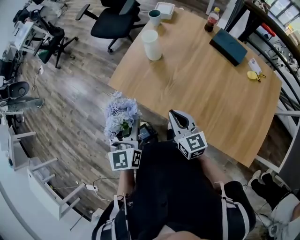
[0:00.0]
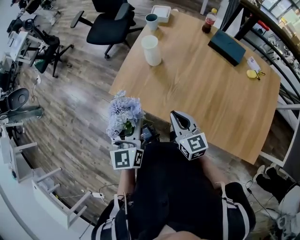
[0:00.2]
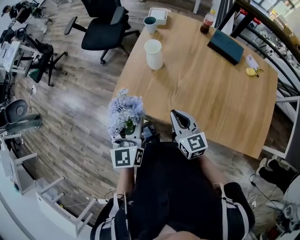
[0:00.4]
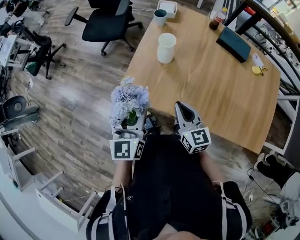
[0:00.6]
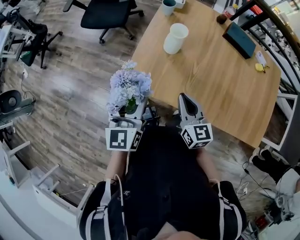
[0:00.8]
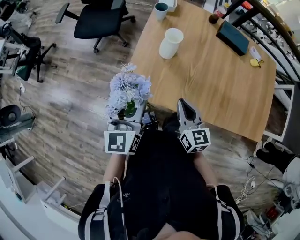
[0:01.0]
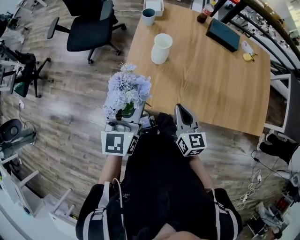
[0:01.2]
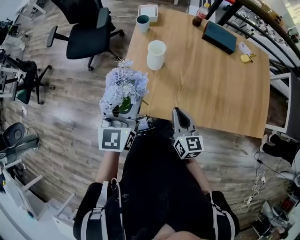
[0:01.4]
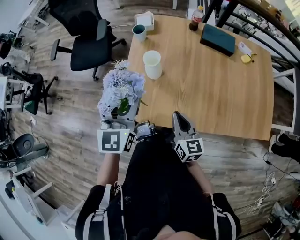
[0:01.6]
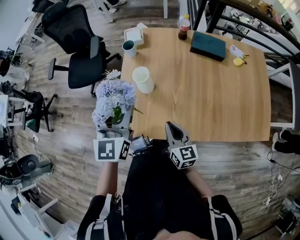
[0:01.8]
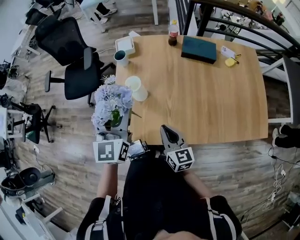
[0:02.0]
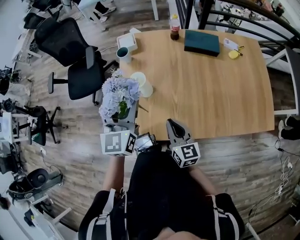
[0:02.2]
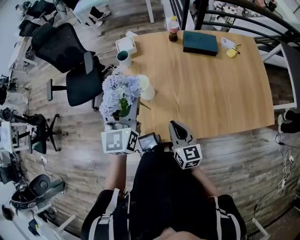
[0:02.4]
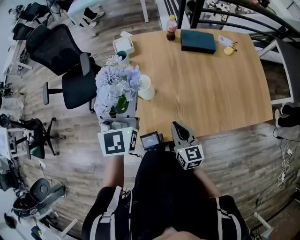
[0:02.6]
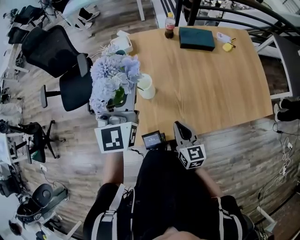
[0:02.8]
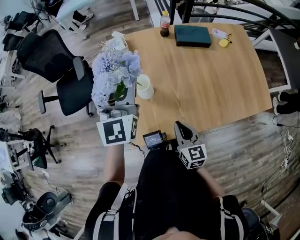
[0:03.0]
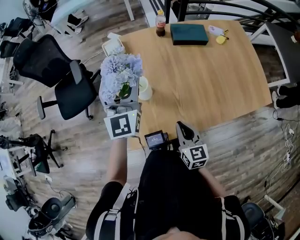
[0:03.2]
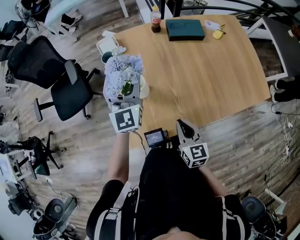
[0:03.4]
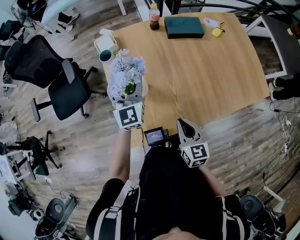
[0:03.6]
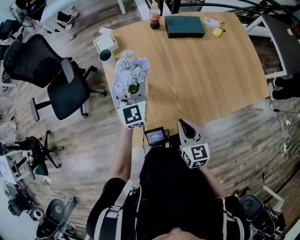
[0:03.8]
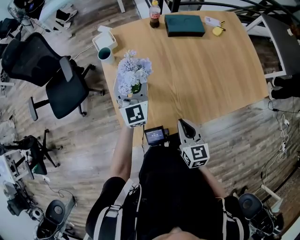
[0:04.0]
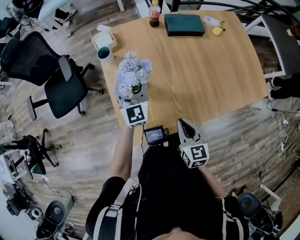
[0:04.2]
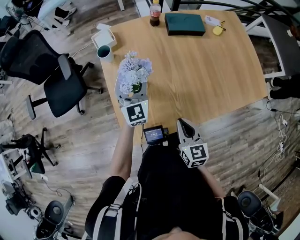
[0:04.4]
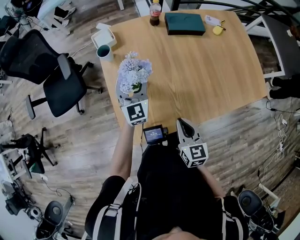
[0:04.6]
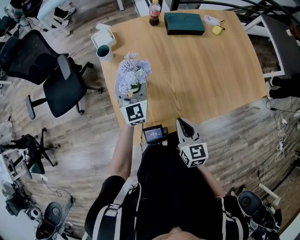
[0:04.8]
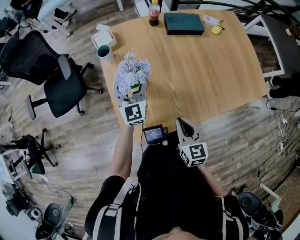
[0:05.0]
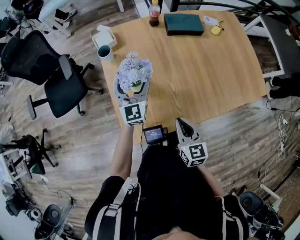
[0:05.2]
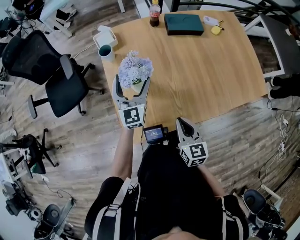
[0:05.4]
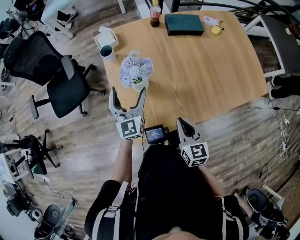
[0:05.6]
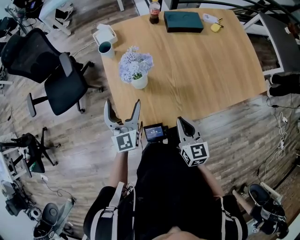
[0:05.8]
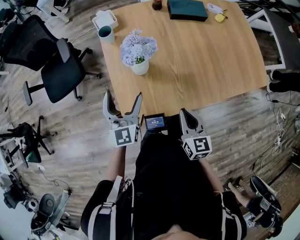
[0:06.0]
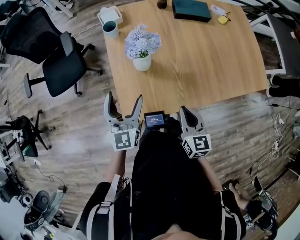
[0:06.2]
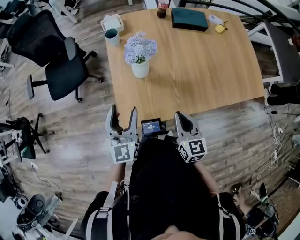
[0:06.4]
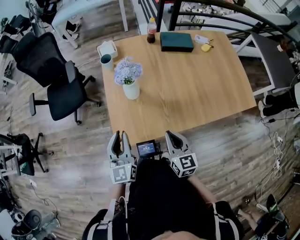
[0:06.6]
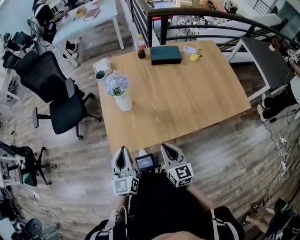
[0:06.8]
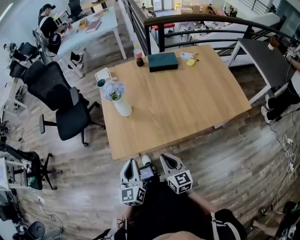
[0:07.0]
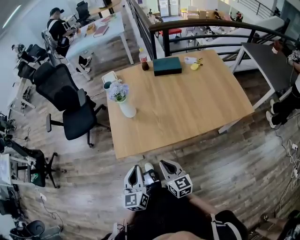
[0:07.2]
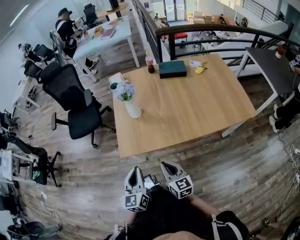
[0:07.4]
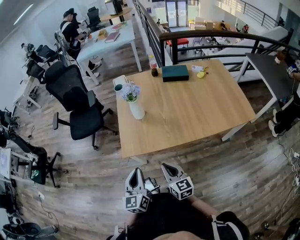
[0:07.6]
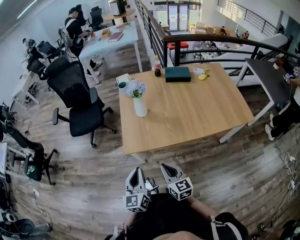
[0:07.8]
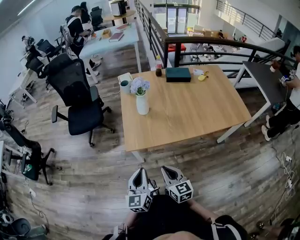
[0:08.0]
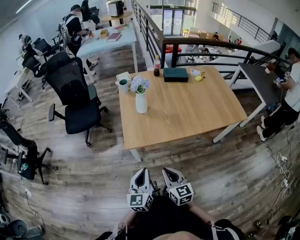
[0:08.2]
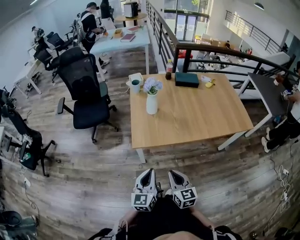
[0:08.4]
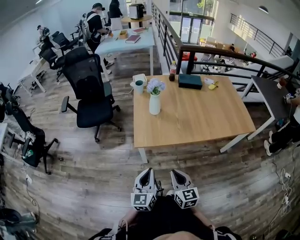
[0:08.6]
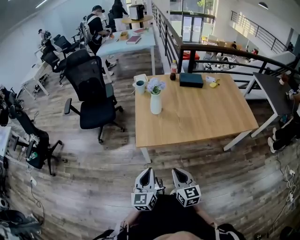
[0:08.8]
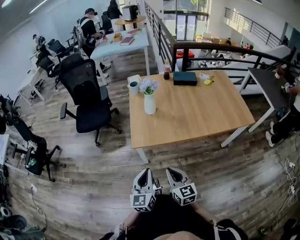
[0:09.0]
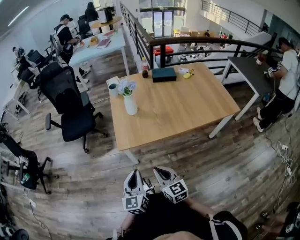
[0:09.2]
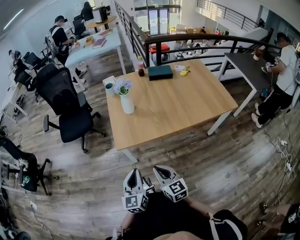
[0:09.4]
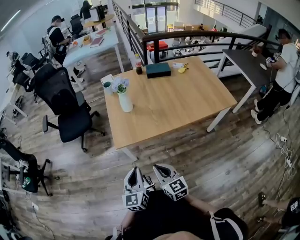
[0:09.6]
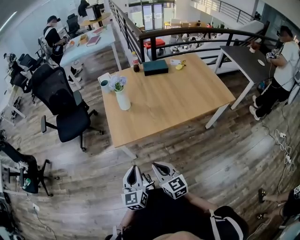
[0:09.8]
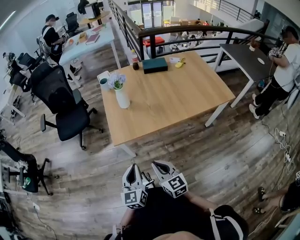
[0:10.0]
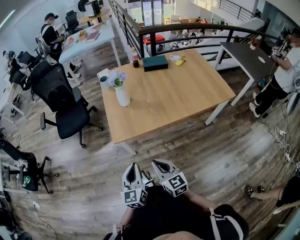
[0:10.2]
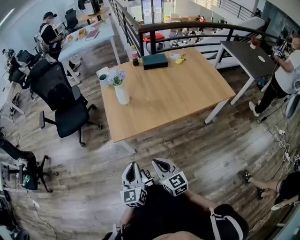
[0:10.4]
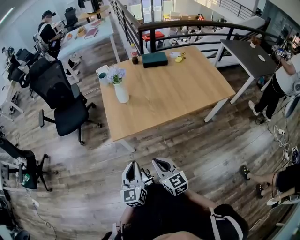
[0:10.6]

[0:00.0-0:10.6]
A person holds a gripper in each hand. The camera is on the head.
0.0 to 1.6 s: The left gripper changes place by about 25 cm, and rotates some 40 degrees, while the right gripper shifts by about 15 cm, and changes its angle by about 40 degrees.
1.6 to 3.0 s: The left gripper shifts roughly 15 cm forward and upward.
3.0 to 4.6 s: The left gripper shifts roughly 20 cm downward.
4.6 to 6.0 s: The left gripper shifts some 15 cm backward and to the left.
6.0 to 7.6 s: The right gripper heads backward, covering about 20 cm, and rotates some 20 degrees; the left gripper travels backward by about 35 cm, and closes.
7.6 to 9.0 s: The left gripper is displaced backward by approximately 10 cm; the right gripper is displaced backward and to the left by some 10 cm.
9.0 to 10.6 s: The grippers make only small movements.

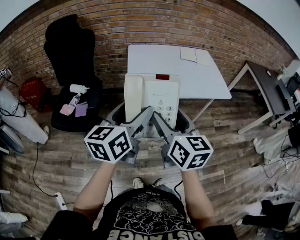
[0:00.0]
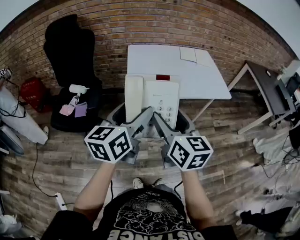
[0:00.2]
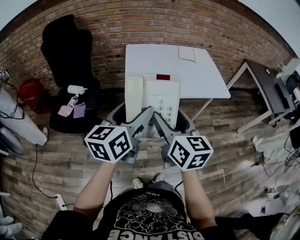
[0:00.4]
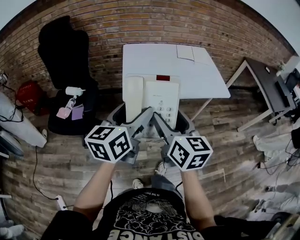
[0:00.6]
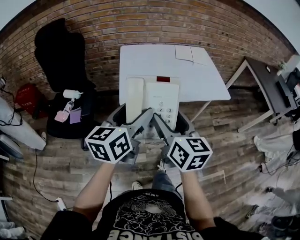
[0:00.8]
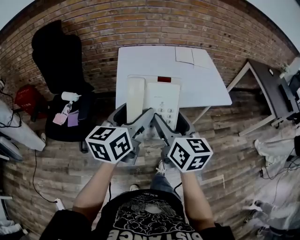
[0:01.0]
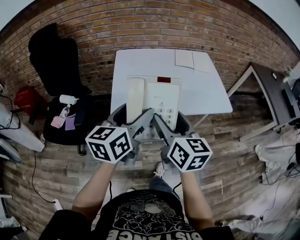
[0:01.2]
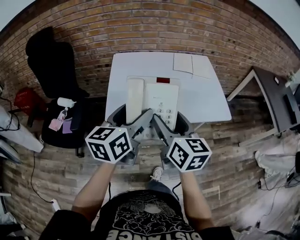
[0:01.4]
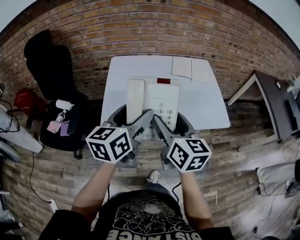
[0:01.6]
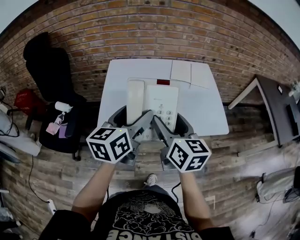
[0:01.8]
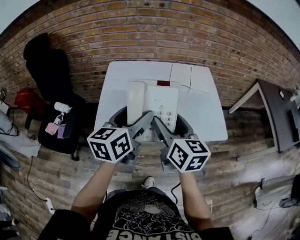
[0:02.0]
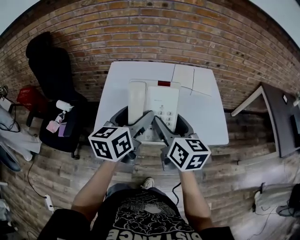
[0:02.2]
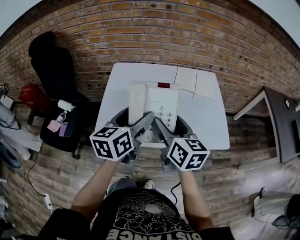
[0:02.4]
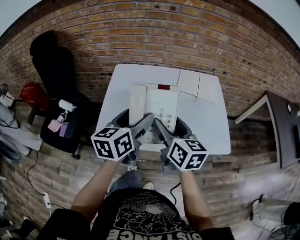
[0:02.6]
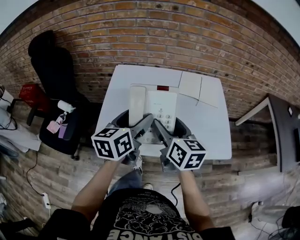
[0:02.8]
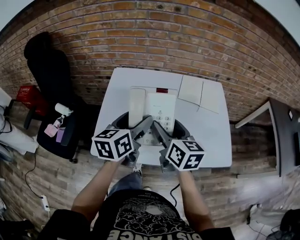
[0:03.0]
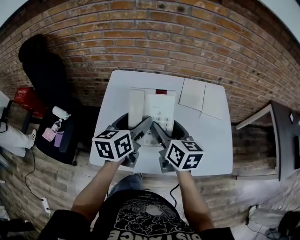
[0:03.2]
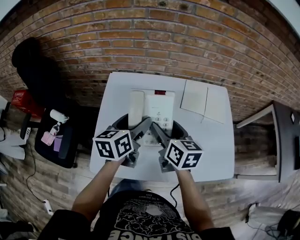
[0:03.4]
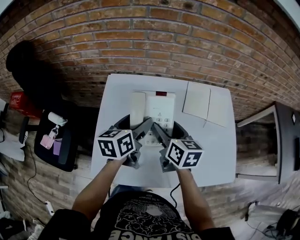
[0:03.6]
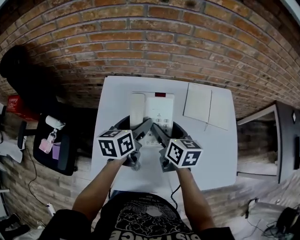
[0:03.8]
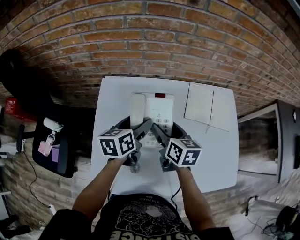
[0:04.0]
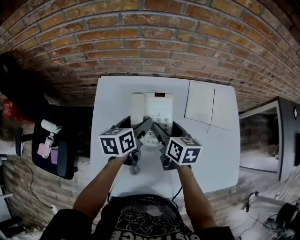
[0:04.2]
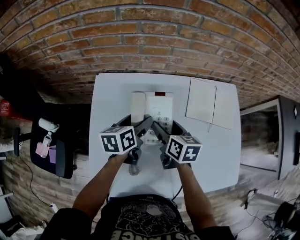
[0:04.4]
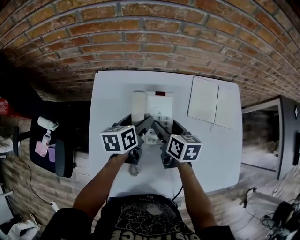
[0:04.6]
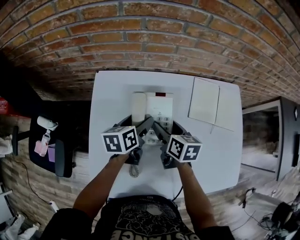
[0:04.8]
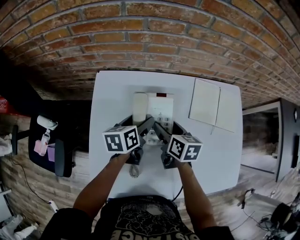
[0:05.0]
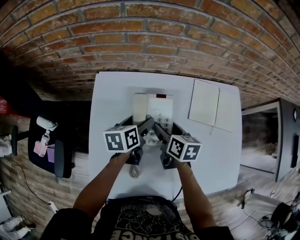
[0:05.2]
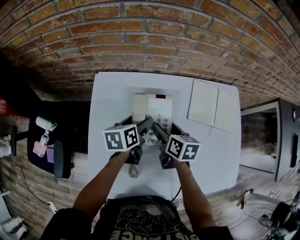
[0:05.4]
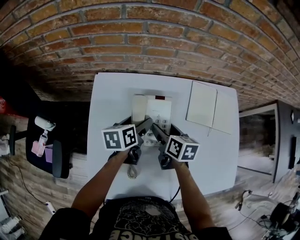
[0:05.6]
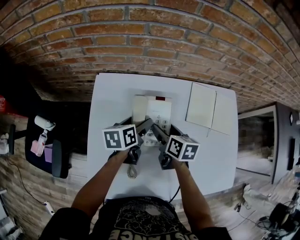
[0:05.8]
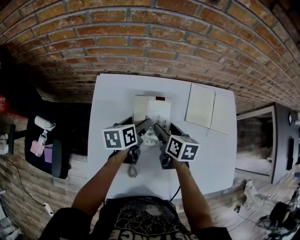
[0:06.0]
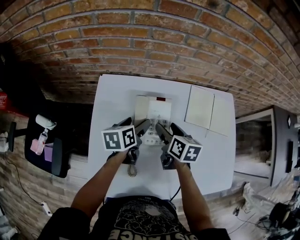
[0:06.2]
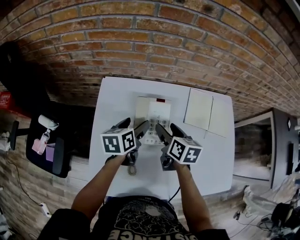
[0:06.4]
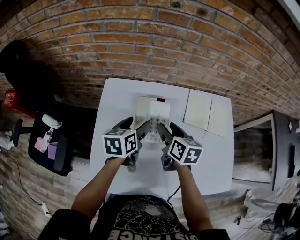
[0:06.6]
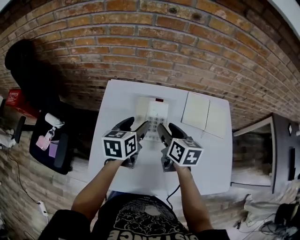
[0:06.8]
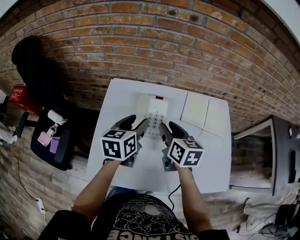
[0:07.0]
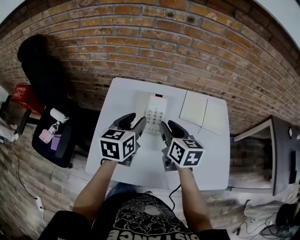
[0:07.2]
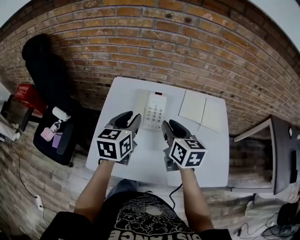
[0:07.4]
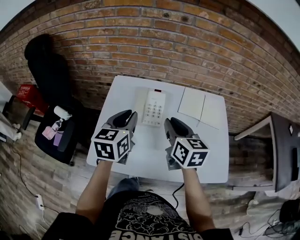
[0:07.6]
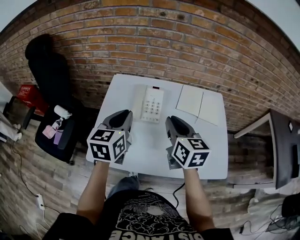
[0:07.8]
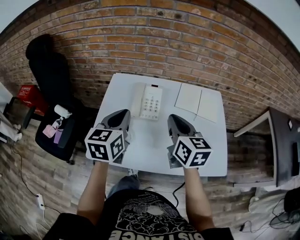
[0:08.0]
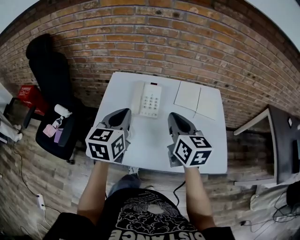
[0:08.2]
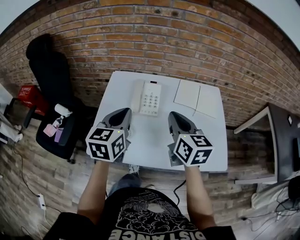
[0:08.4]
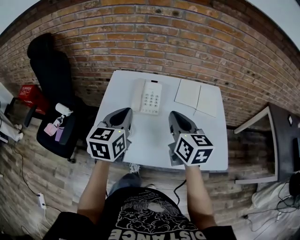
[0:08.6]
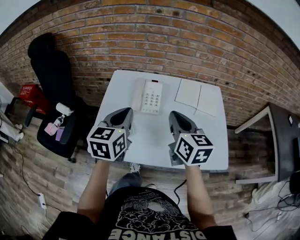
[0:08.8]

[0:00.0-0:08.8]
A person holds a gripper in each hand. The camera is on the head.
0.0 to 1.4 s: The grippers both shift forward and to the right by some 25 cm.
1.4 to 3.0 s: The two grippers go roughly 20 cm forward.
3.0 to 4.4 s: The grippers both shift forward and downward by about 30 cm. The right gripper changes its angle by roughly 20 degrees, while the left gripper rotates roughly 20 degrees.
4.4 to 5.8 s: The grippers stay close to where they were, moving slightly.
5.8 to 7.4 s: The grippers both shift upward and backward by approximately 25 cm. The left gripper swivels some 30 degrees, and closes up. Meanwhile the right gripper turns by about 30 degrees, and closes.
7.4 to 8.8 s: The right gripper shifts about 10 cm backward and upward. Meanwhile the left gripper heads backward, covering about 10 cm.

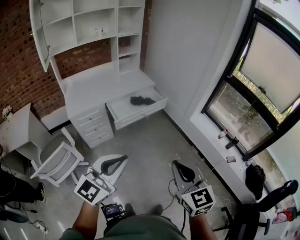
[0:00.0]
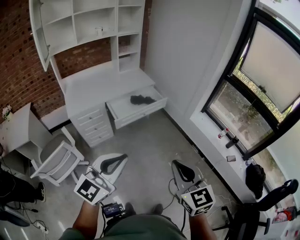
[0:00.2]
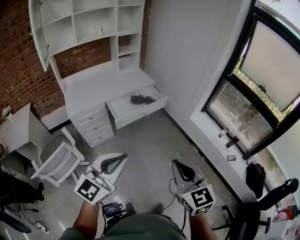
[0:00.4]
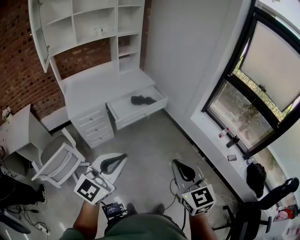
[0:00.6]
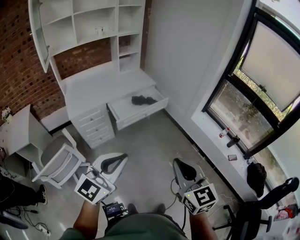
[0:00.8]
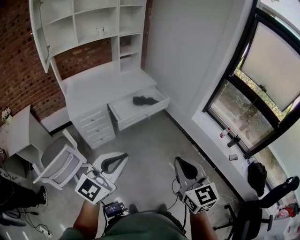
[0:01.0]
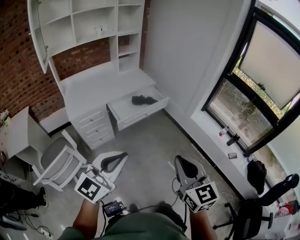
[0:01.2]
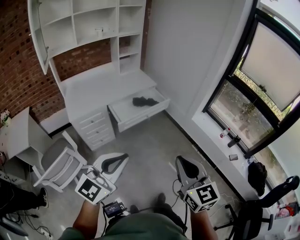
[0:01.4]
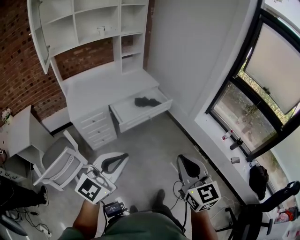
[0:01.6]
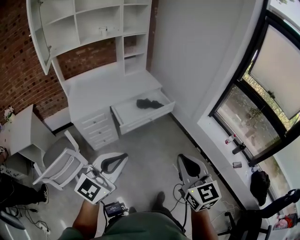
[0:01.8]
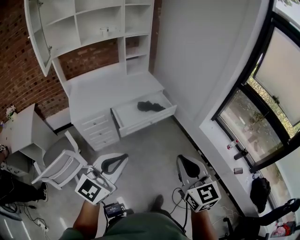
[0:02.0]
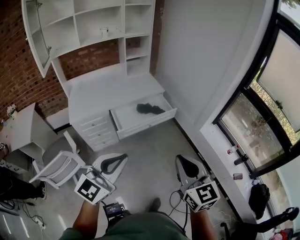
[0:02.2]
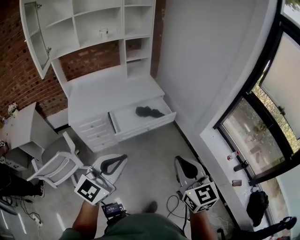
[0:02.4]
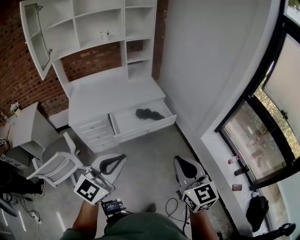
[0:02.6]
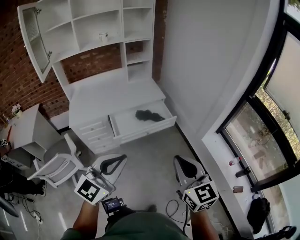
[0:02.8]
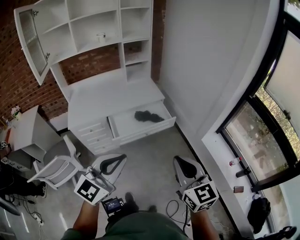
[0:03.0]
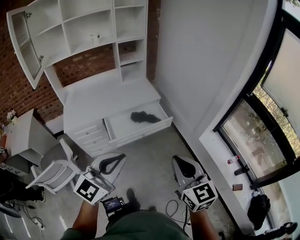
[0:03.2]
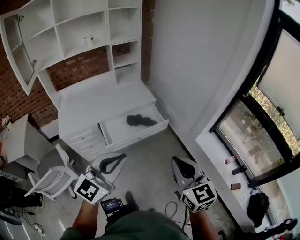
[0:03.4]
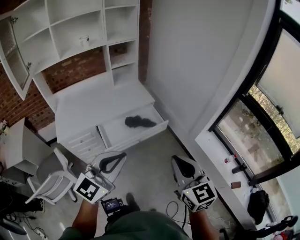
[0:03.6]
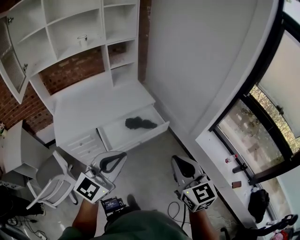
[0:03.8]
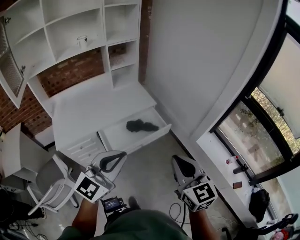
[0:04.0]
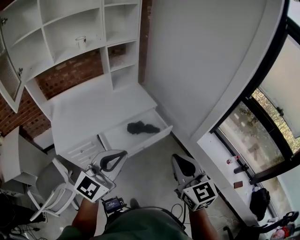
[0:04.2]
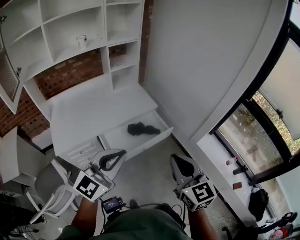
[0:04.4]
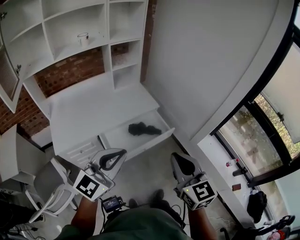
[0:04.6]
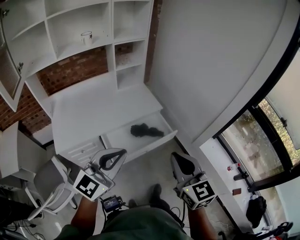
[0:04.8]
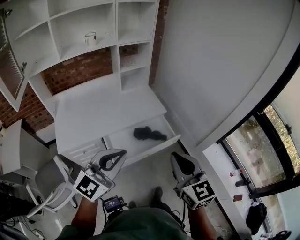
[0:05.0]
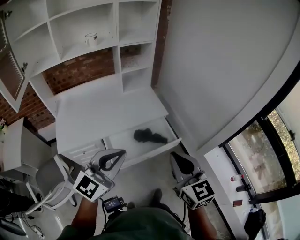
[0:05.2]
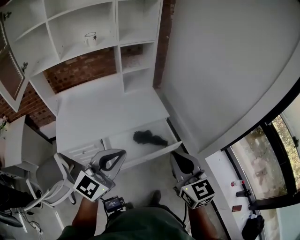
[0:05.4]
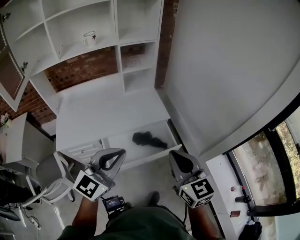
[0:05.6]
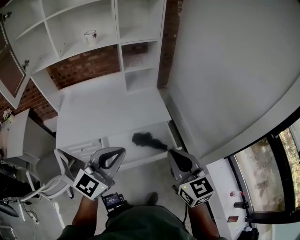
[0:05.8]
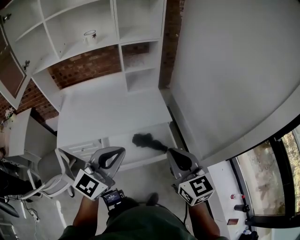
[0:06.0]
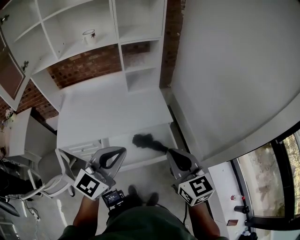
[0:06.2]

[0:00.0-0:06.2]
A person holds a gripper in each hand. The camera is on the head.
0.0 to 1.6 s: The left gripper shifts some 5 cm to the left. The right gripper travels forward by some 5 cm.
1.6 to 3.2 s: The two grippers go about 30 cm forward and to the right.
3.2 to 4.6 s: The two grippers go approximately 25 cm forward and to the left.
4.6 to 6.2 s: The left gripper travels forward and to the right by about 25 cm. The right gripper is displaced forward by roughly 25 cm, and rotates some 20 degrees.
